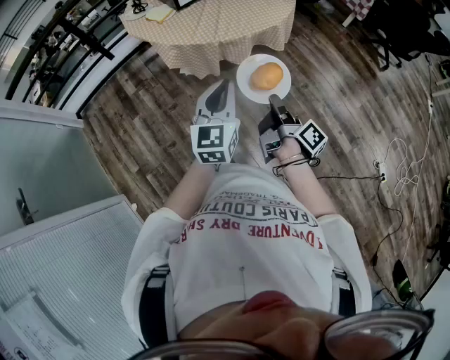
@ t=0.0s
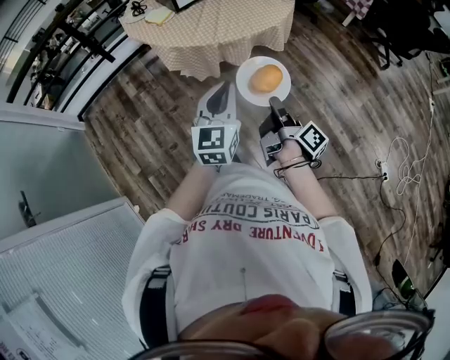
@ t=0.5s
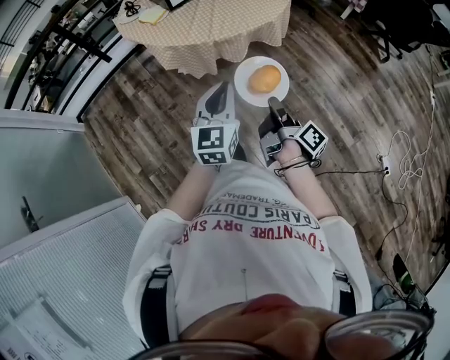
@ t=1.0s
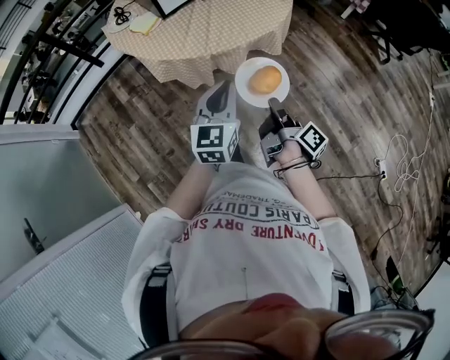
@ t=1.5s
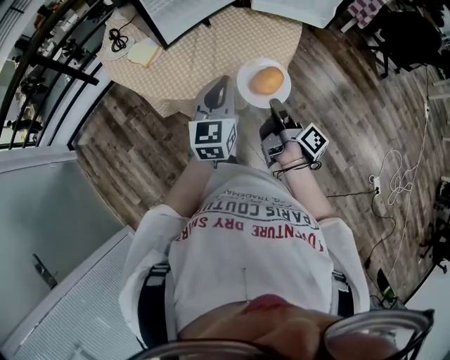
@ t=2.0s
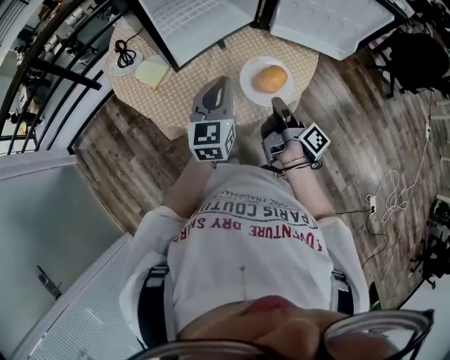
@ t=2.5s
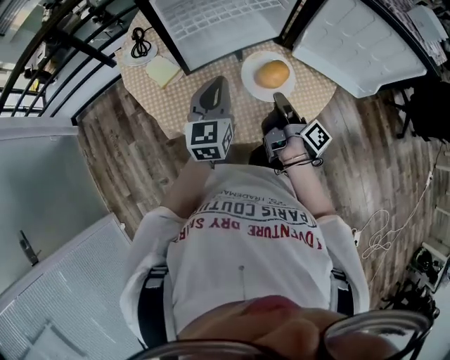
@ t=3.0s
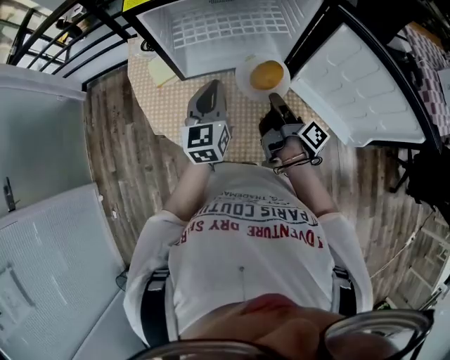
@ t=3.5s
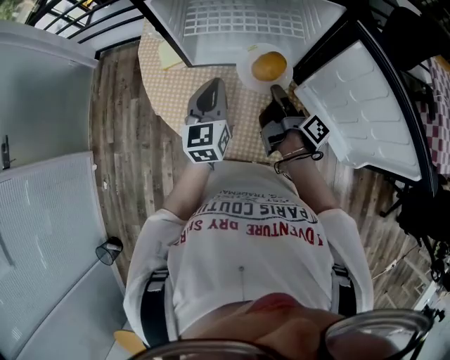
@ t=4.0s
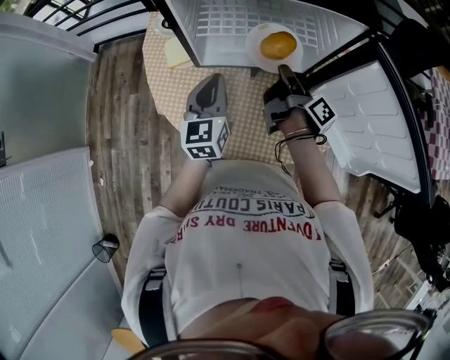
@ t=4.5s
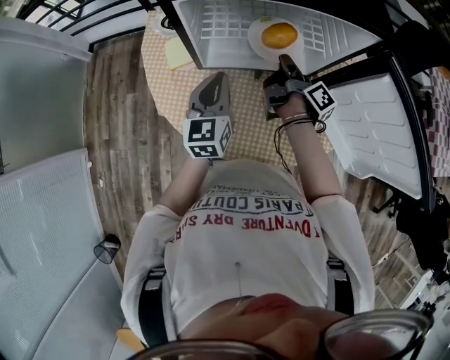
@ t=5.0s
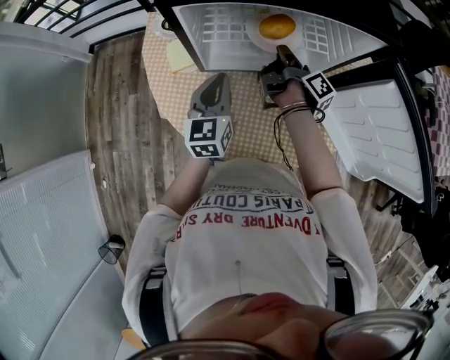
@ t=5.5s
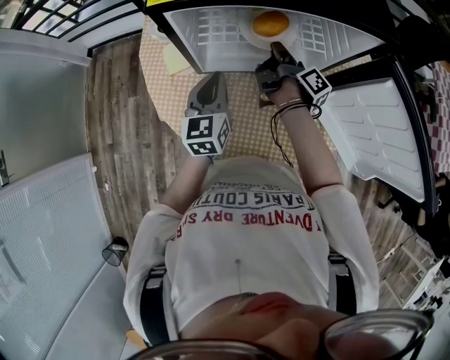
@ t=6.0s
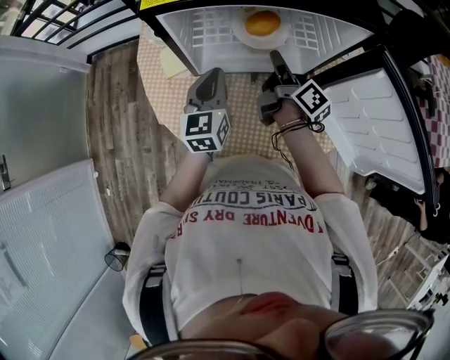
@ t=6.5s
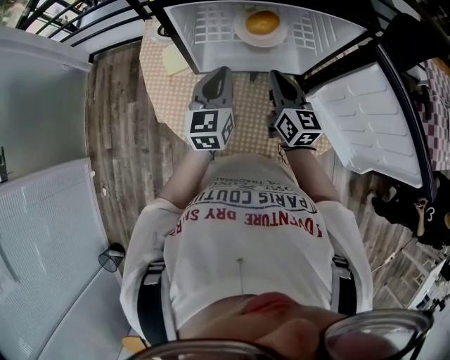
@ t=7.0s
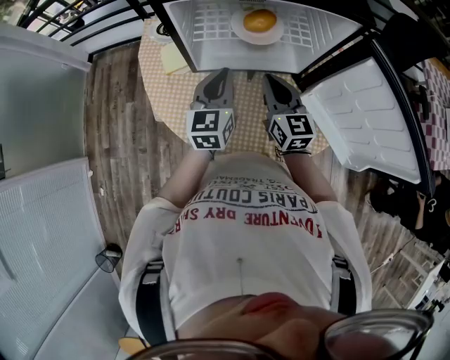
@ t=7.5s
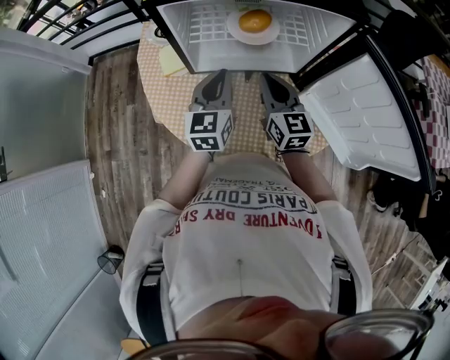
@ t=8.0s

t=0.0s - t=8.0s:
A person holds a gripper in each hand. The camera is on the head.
t=0.0s - t=2.0s: The left gripper changes place by some 30 cm.
t=2.0s - t=4.0s: The left gripper shifts by roughly 25 cm, and swivels roughly 50 degrees.
t=4.0s - t=6.0s: The left gripper ends up roughly 10 cm from where it was.
t=6.0s - t=8.0s: The left gripper changes place by about 5 cm.
